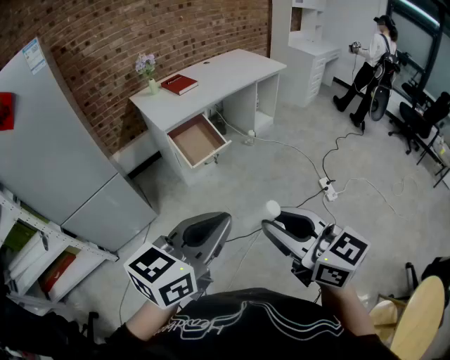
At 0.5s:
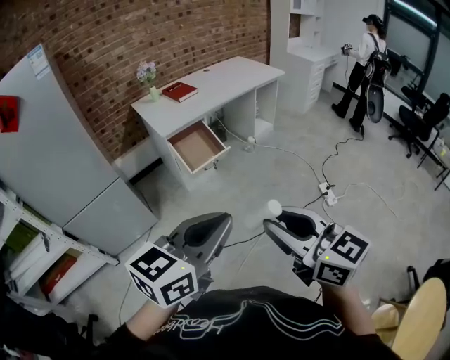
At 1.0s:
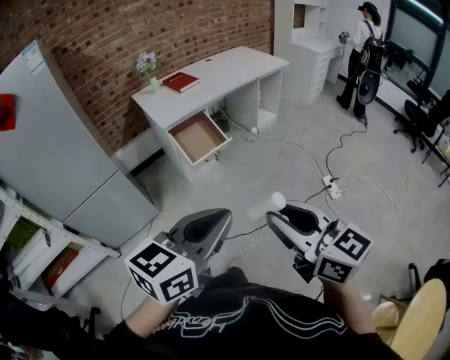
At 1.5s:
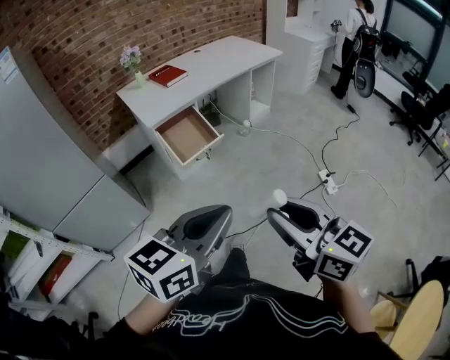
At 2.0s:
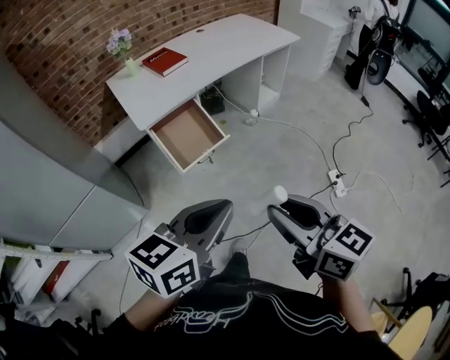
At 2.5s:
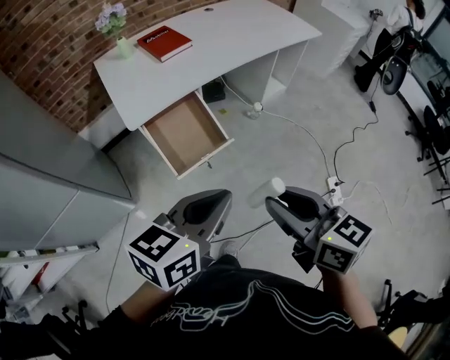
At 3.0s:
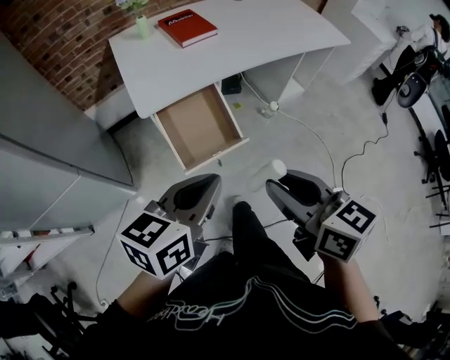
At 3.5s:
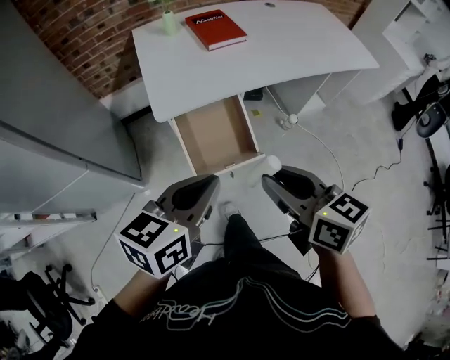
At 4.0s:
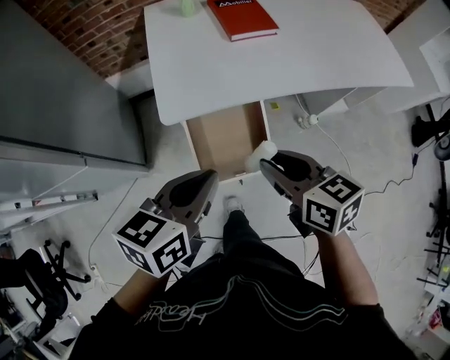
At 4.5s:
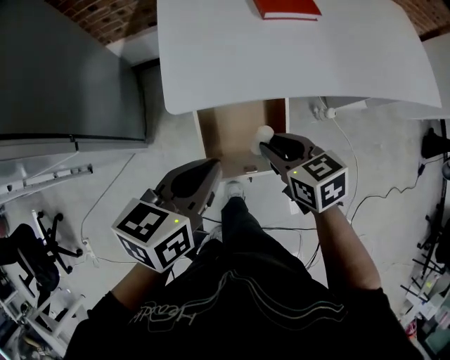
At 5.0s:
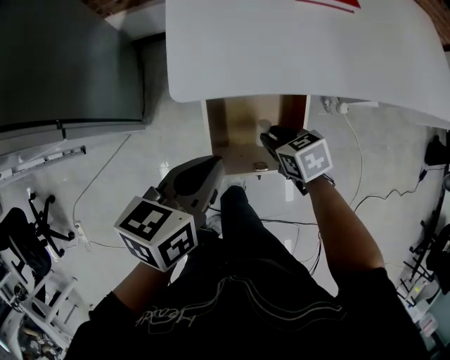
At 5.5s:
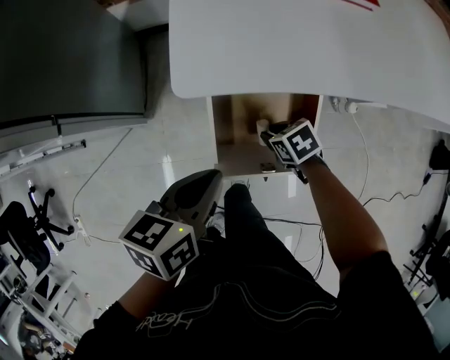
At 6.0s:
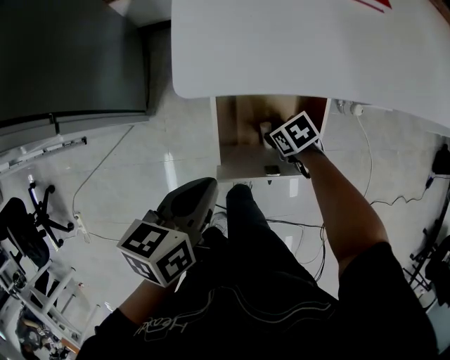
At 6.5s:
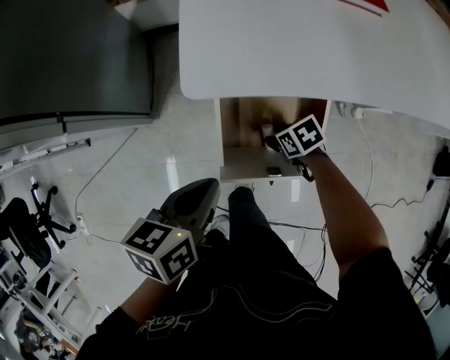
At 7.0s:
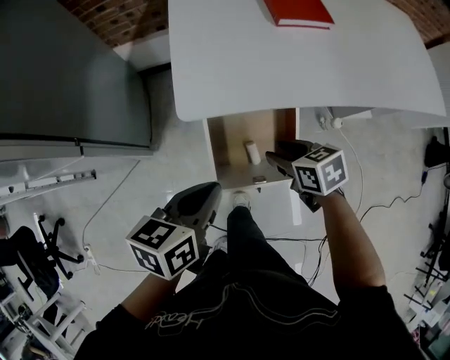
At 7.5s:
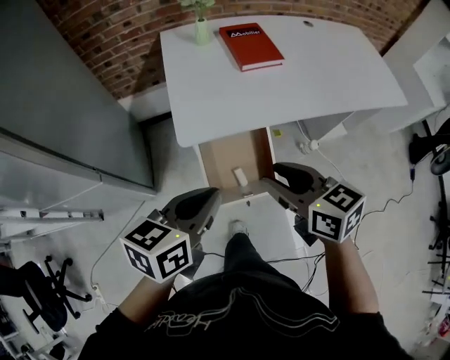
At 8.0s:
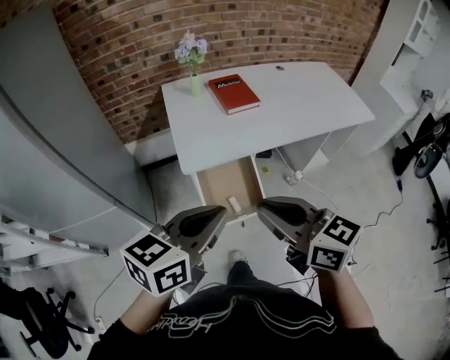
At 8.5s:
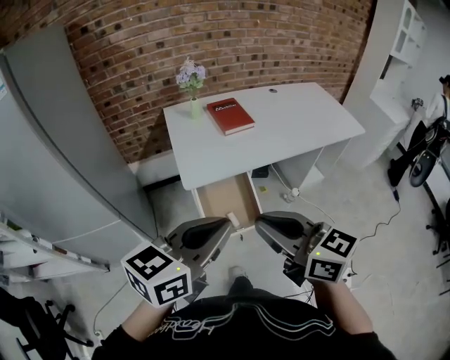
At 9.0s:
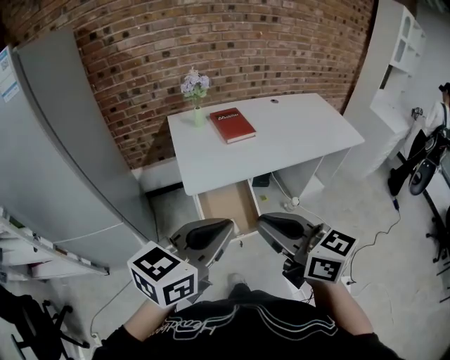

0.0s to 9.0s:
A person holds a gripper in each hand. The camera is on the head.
0.0s to 2.0s: Both grippers move forward, roughly 30 cm.
2.0s to 4.5s: The two grippers travel together, some 50 cm. The right gripper points its fingers some 30 degrees further downward, while the left gripper turns by some 40 degrees.
4.5s to 7.0s: The left gripper is displaced downward by roughly 5 cm. The right gripper goes downward and returns, some 30 cm each way, and opens up.
7.0s to 9.0s: Both grippers move upward and backward, roughly 50 cm. The left gripper rotates approximately 40 degrees. The right gripper tips its fingers upward by about 40 degrees, and closes up.

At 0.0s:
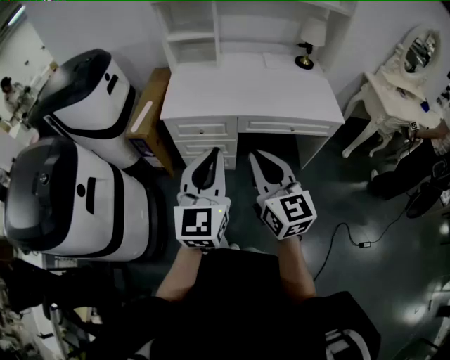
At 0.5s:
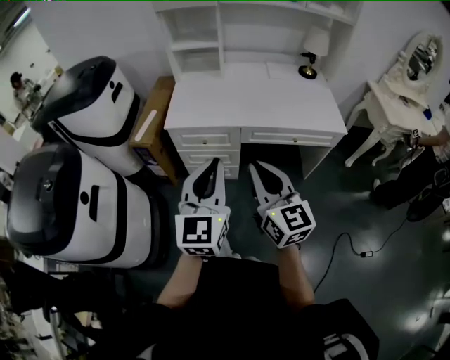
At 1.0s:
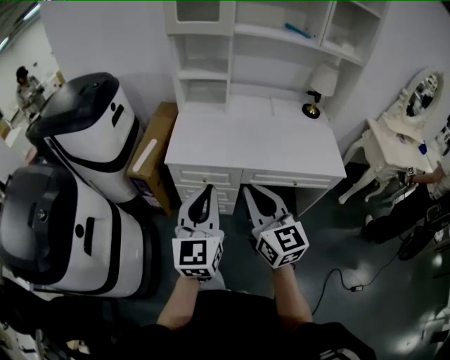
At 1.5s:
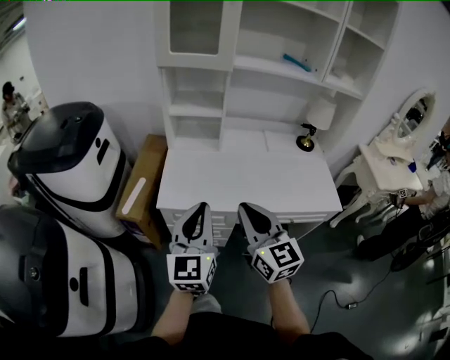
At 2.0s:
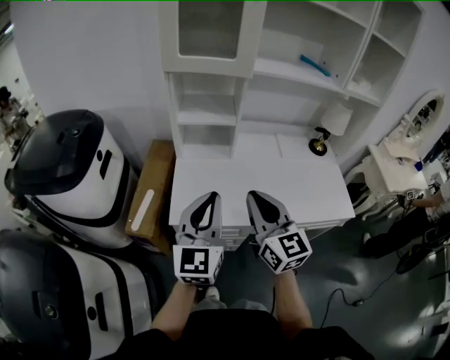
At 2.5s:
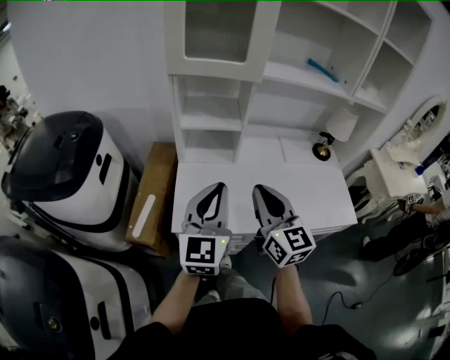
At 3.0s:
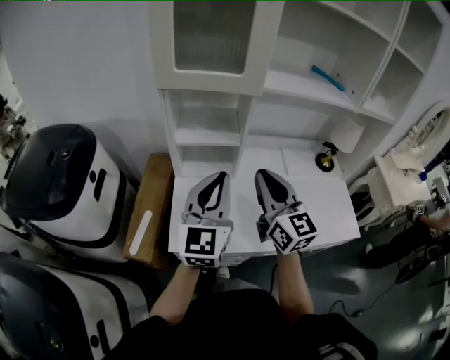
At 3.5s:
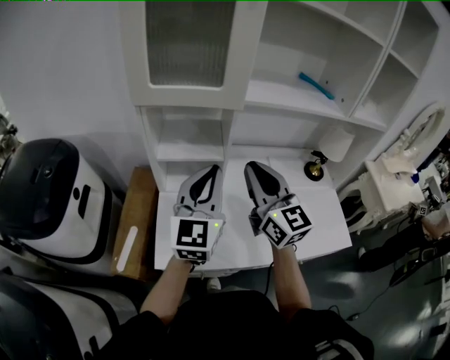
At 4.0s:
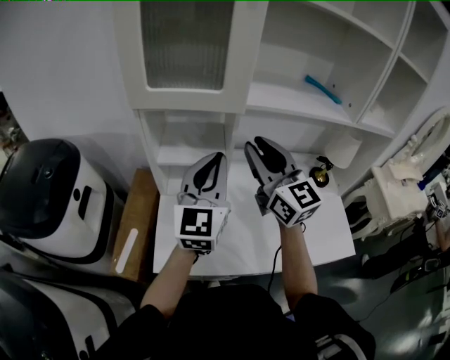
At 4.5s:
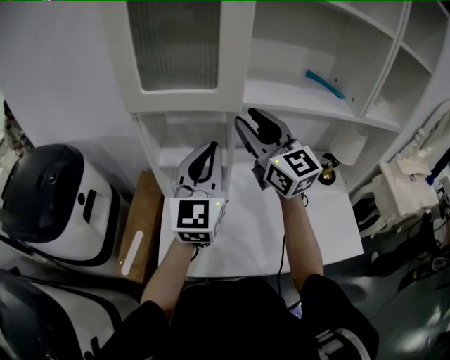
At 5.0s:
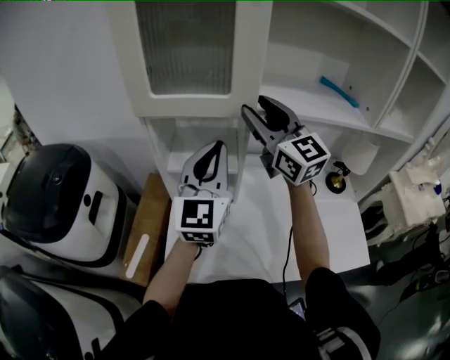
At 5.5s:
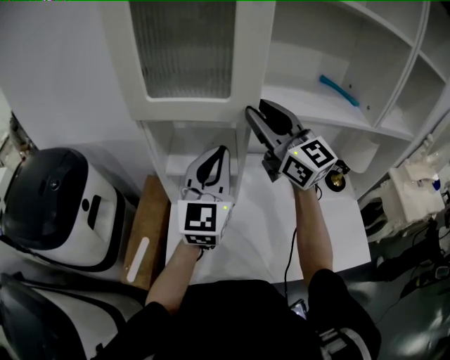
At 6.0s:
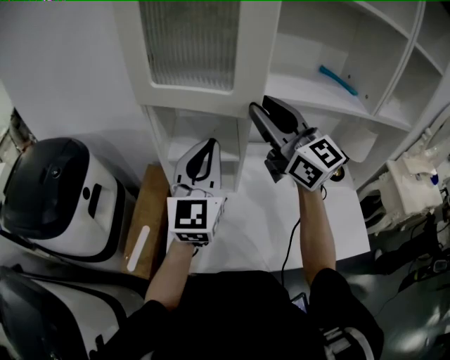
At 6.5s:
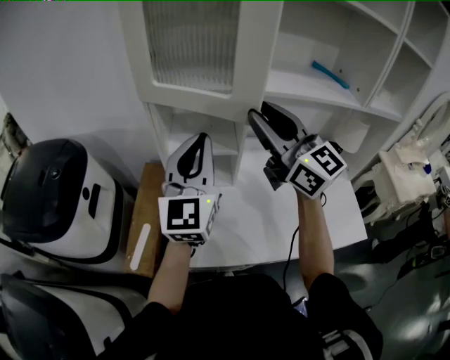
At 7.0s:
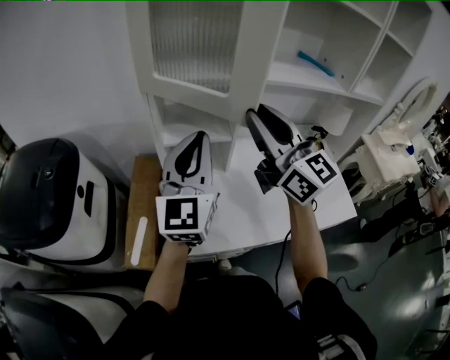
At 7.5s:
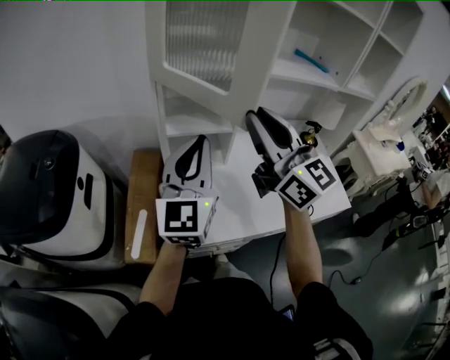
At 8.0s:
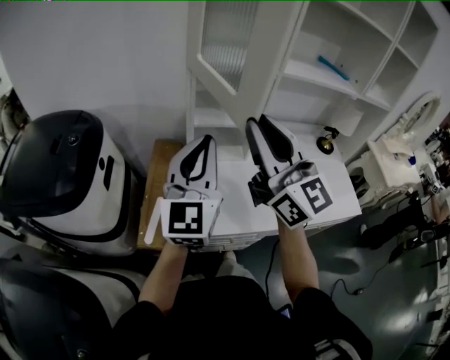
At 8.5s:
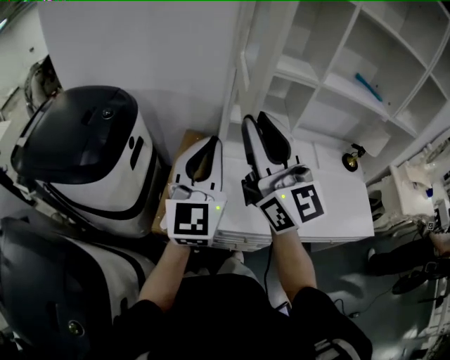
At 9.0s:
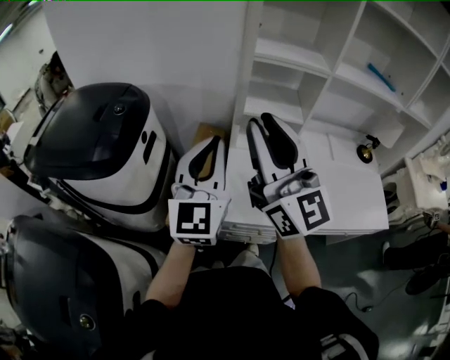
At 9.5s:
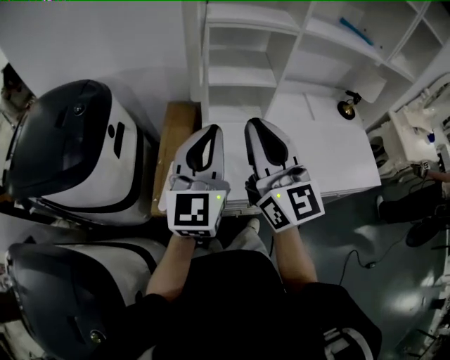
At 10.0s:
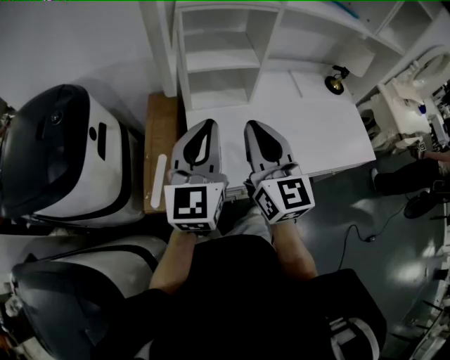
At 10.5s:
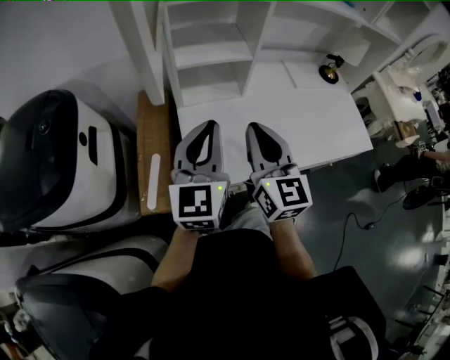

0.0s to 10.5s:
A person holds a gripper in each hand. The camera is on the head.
0.0s to 2.0s: The two grippers go roughly 35 cm forward.
2.0s to 4.0s: Both grippers move forward, about 25 cm.
4.0s to 6.5s: The left gripper moves to the left, about 5 cm. The right gripper heads upward, covering roughly 5 cm, and travels forward and back again, approximately 10 cm each way.
6.5s to 8.5s: The grippers both shift to the left and backward by about 25 cm.
8.5s to 10.5s: The right gripper shifts roughly 25 cm downward and to the right, and rotates about 40 degrees. Meanwhile the left gripper heads downward and to the right, covering approximately 15 cm, and swivels about 20 degrees.

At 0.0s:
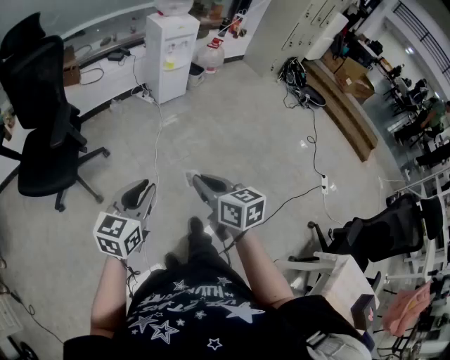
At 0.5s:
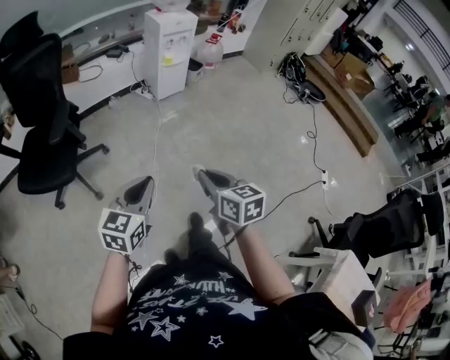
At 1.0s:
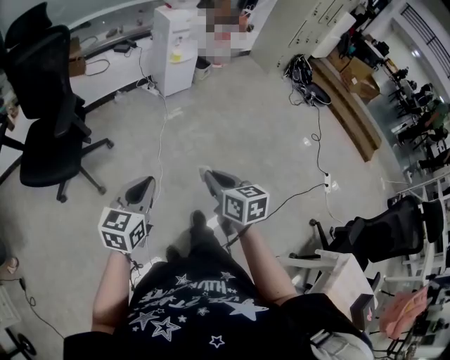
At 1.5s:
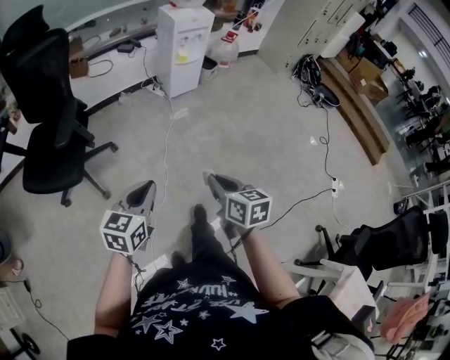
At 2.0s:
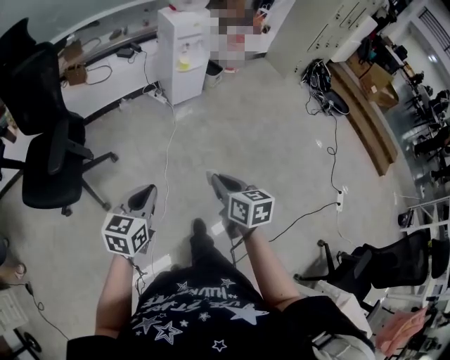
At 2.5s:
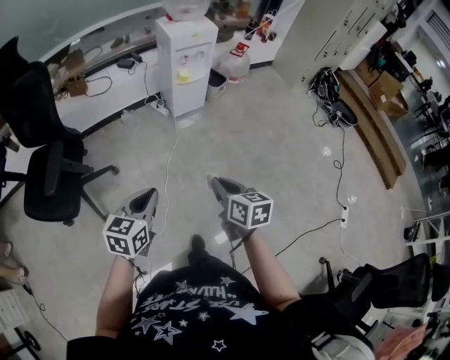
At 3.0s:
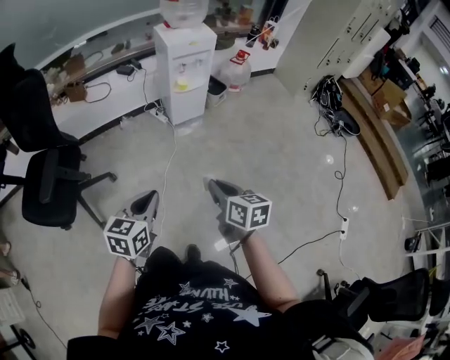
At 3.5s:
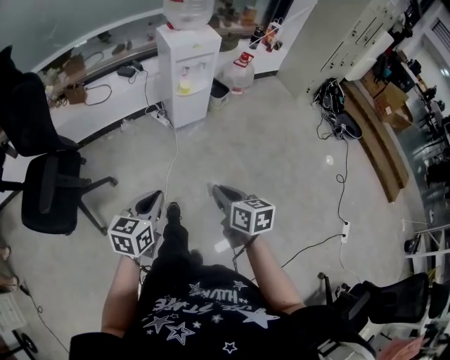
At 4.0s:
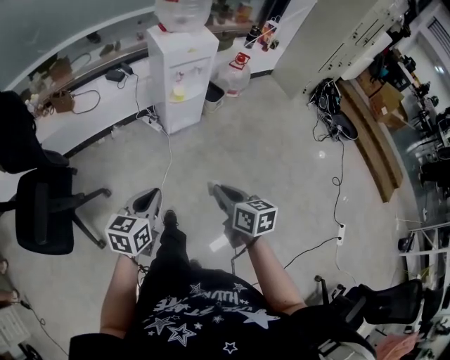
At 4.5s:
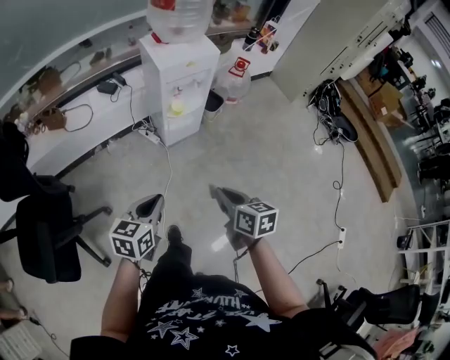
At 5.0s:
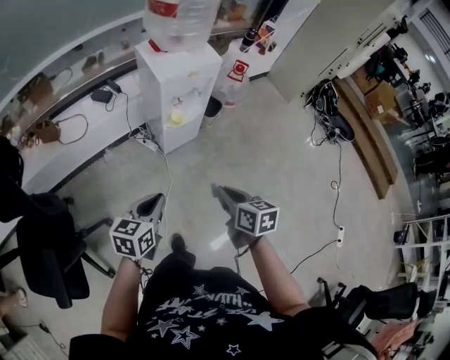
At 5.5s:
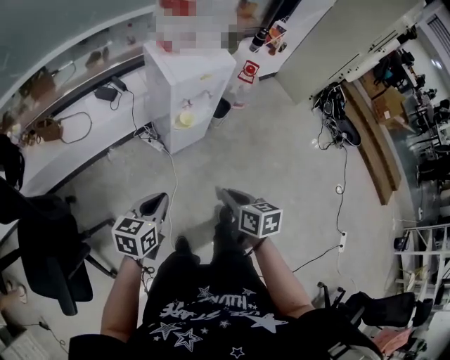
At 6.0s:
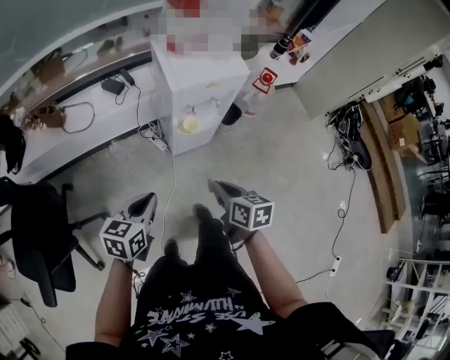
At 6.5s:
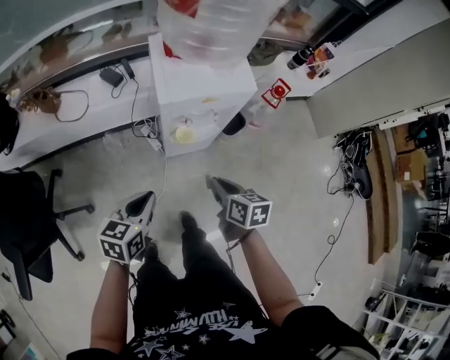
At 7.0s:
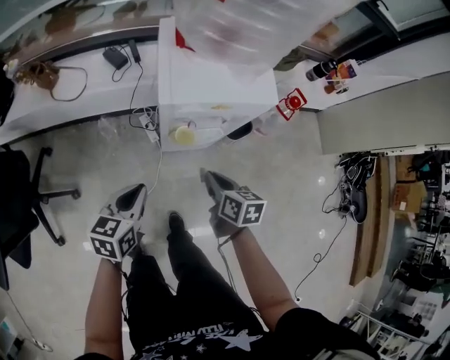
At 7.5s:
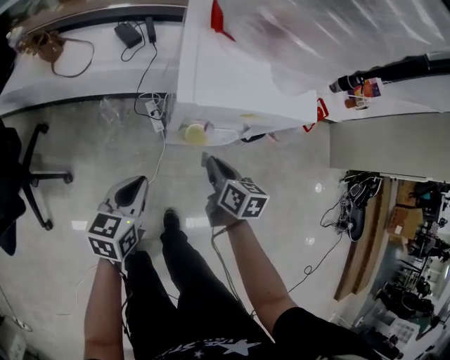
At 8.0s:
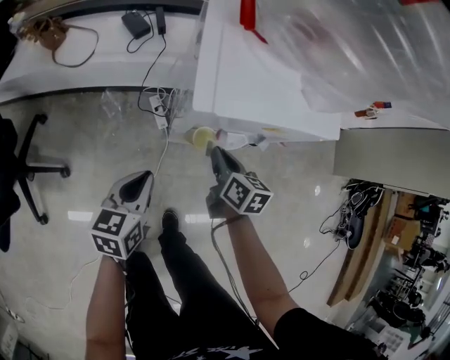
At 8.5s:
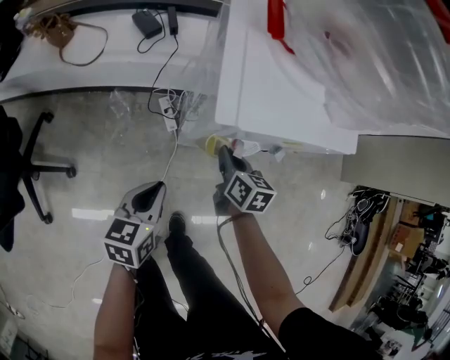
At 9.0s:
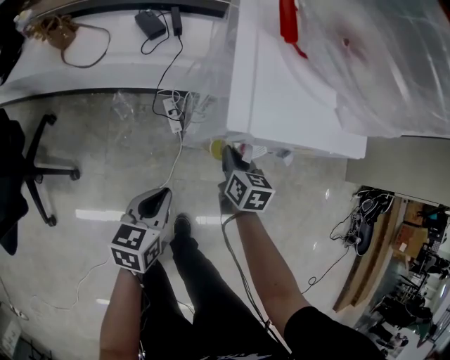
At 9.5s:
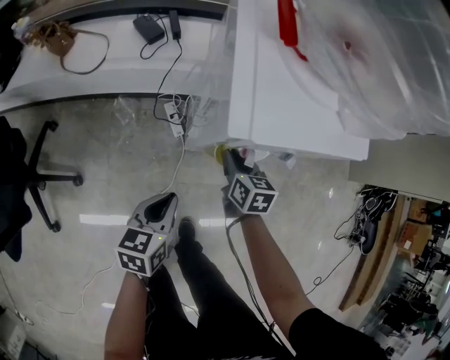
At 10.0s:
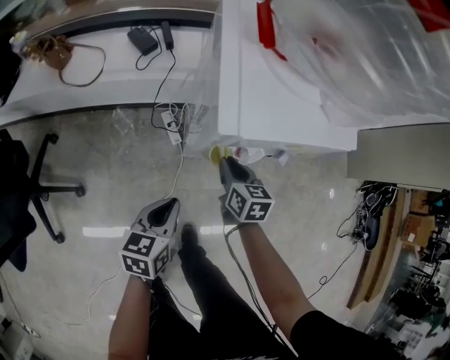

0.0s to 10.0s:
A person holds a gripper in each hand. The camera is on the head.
0.0s to 2.0s: Both grippers travel together forward, some 20 cm.
2.0s to 4.0s: Both grippers move forward, some 30 cm.
4.0s to 6.0s: The grippers both shift forward by approximately 35 cm.
6.0s to 8.0s: The grippers both shift forward and downward by roughly 35 cm. The left gripper swivels some 20 degrees.
